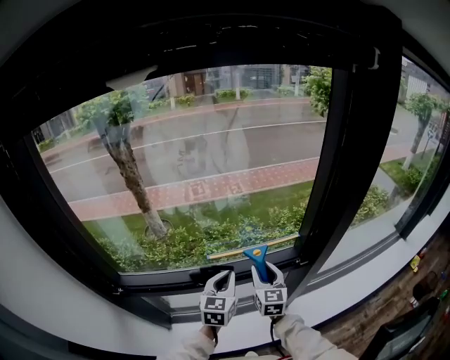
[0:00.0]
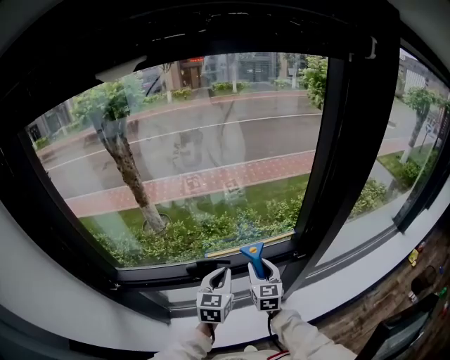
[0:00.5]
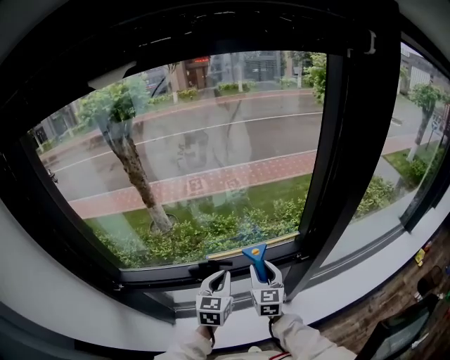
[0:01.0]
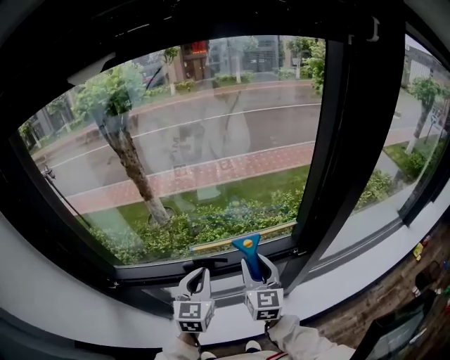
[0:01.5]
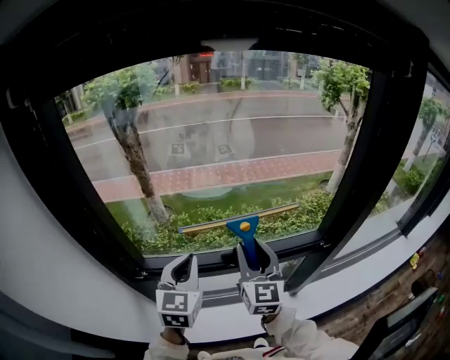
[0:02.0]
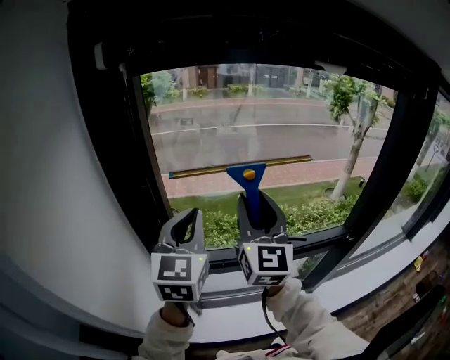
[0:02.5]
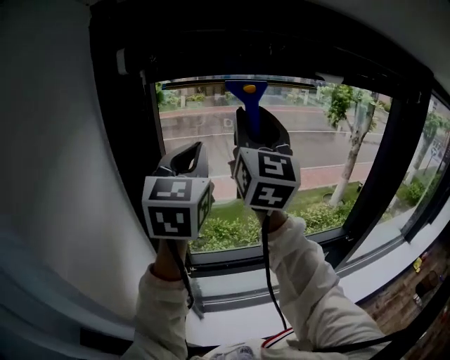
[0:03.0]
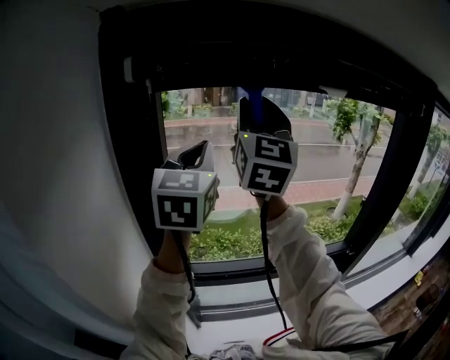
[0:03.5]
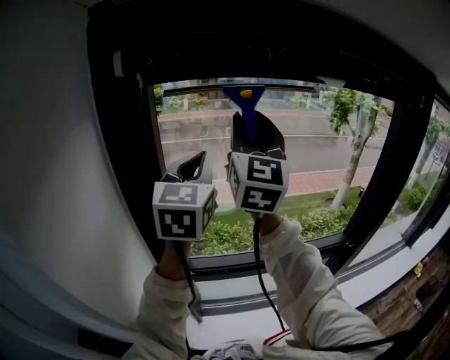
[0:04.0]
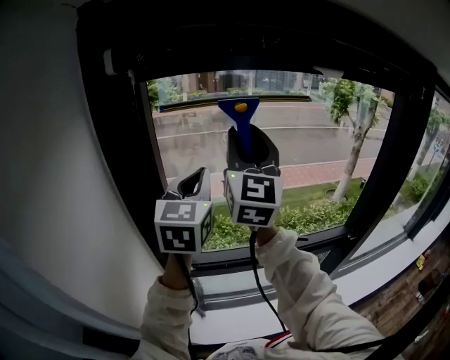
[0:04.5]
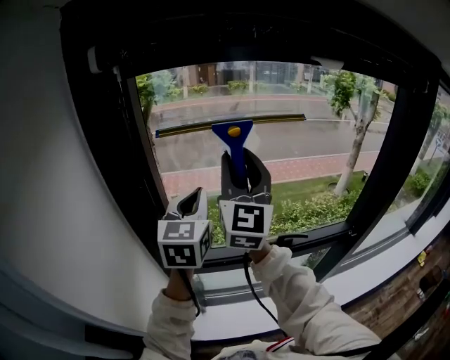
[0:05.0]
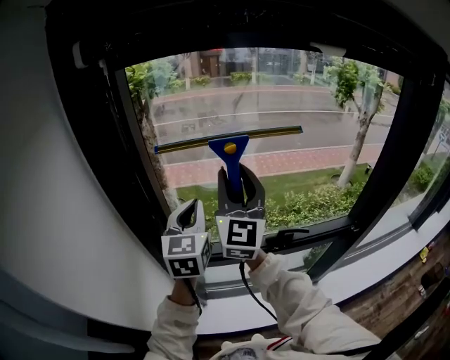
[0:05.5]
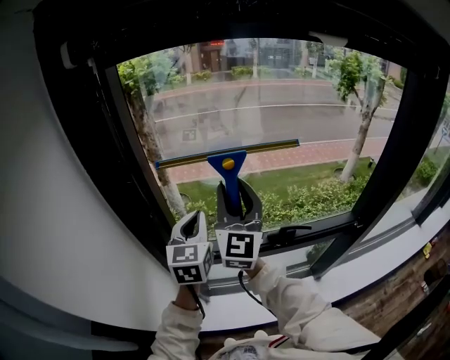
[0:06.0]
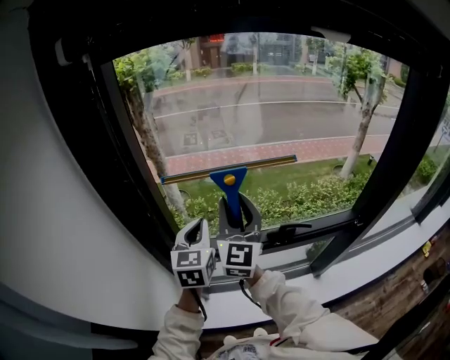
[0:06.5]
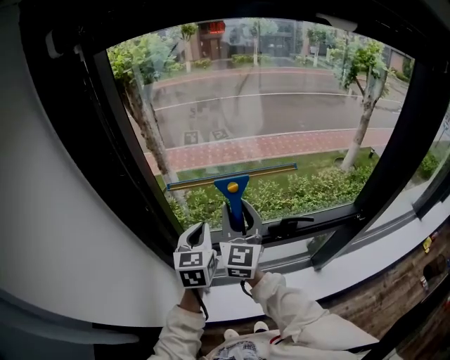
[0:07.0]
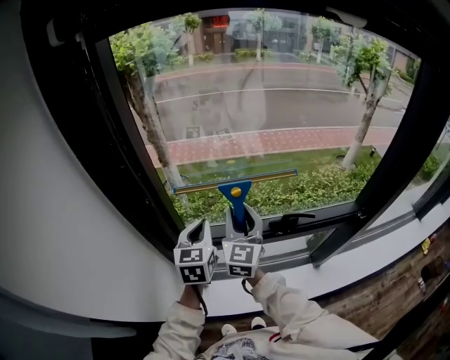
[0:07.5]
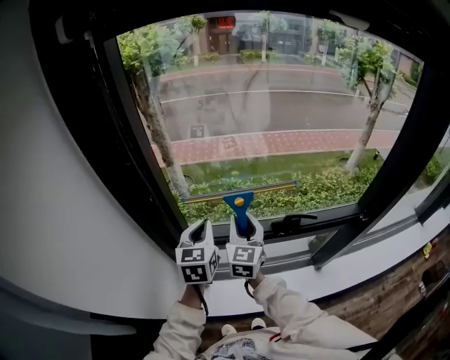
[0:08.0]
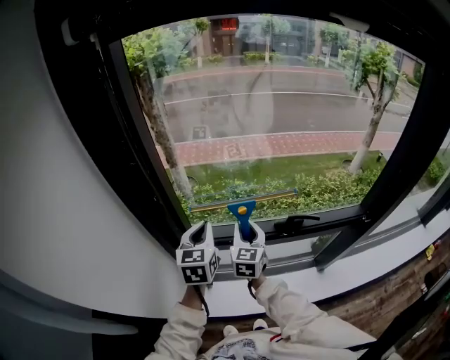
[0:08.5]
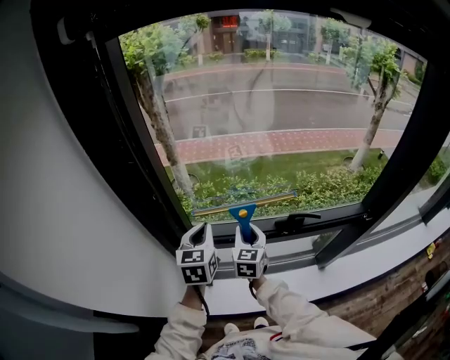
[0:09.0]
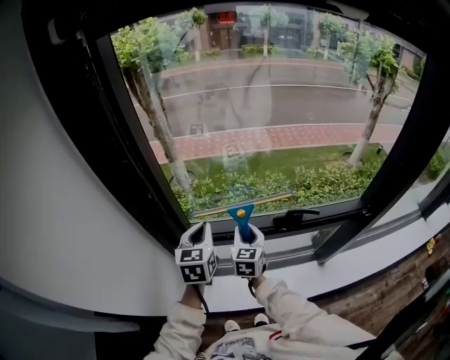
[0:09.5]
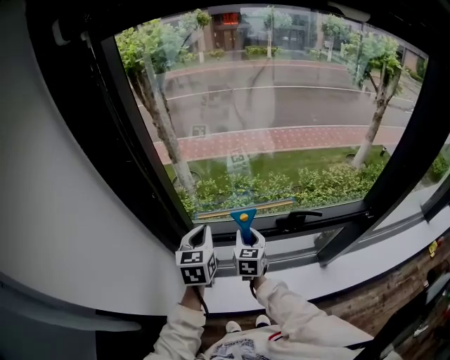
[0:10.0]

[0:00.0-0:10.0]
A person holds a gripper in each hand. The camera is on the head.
0:00.0 to 0:02.0: The right gripper moves to the left, upward and backward, roughly 25 cm. Meanwhile the left gripper travels to the left and upward by approximately 25 cm.
0:02.0 to 0:04.0: Both grippers move upward and to the left, approximately 35 cm. The right gripper swivels approximately 20 degrees.
0:04.0 to 0:06.0: The two grippers go approximately 25 cm downward.
0:06.0 to 0:08.0: The left gripper travels downward by approximately 10 cm. Meanwhile the right gripper heads downward, covering approximately 20 cm, and swivels some 30 degrees.
0:08.0 to 0:10.0: The right gripper shifts some 10 cm downward.

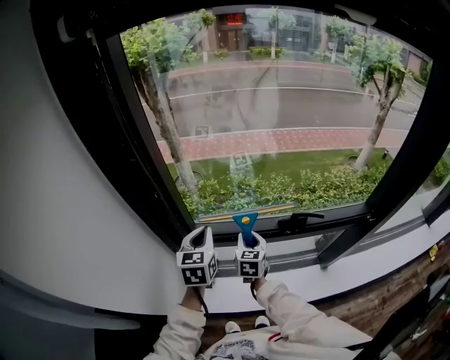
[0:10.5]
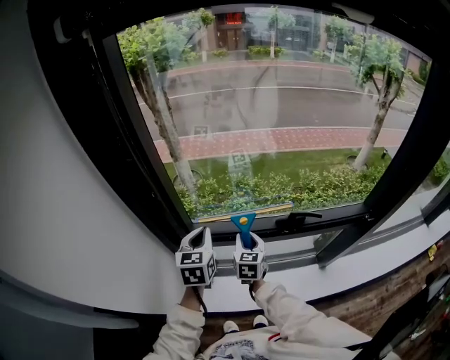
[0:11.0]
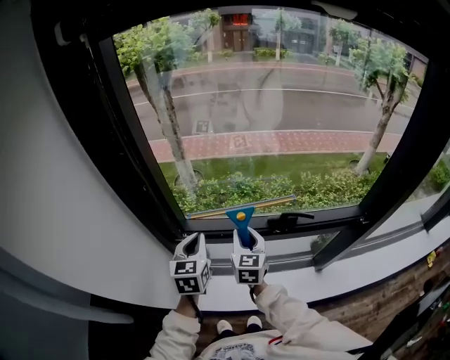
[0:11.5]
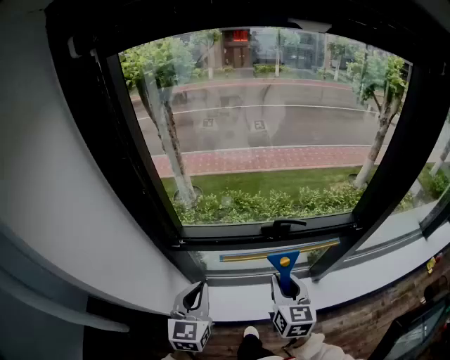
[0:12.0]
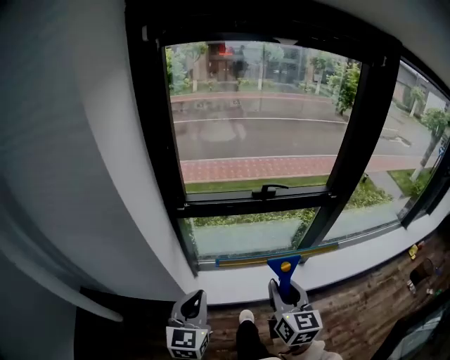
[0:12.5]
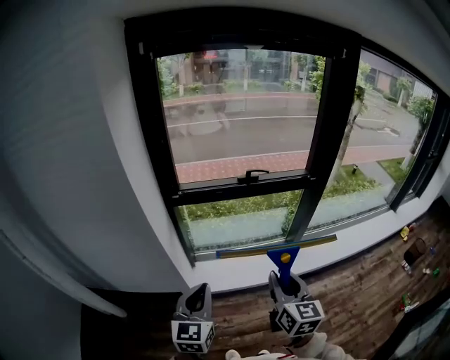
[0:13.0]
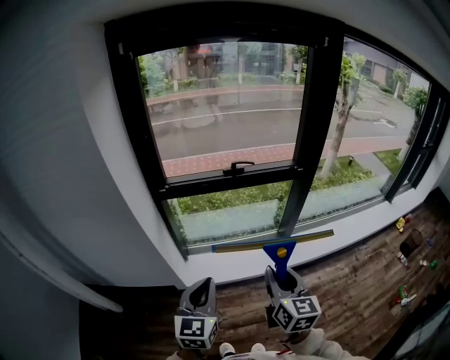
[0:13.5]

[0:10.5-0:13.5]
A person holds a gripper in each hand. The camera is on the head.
0:10.5 to 0:12.0: The left gripper moves backward, approximately 20 cm, while the right gripper moves backward, to the right and upward, roughly 25 cm.
0:12.0 to 0:13.5: The two grippers go about 35 cm backward.

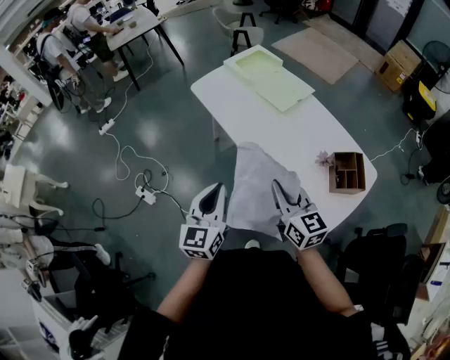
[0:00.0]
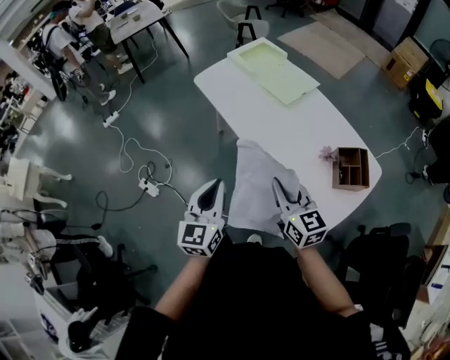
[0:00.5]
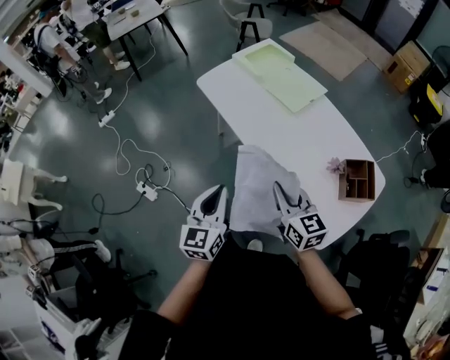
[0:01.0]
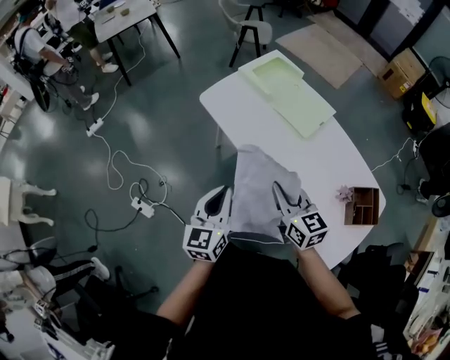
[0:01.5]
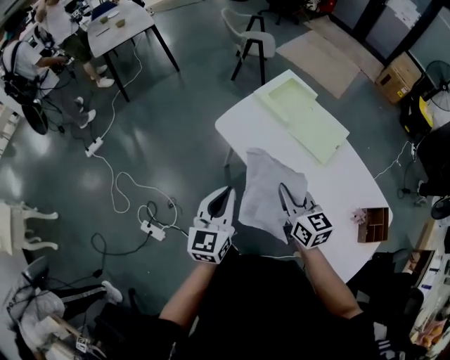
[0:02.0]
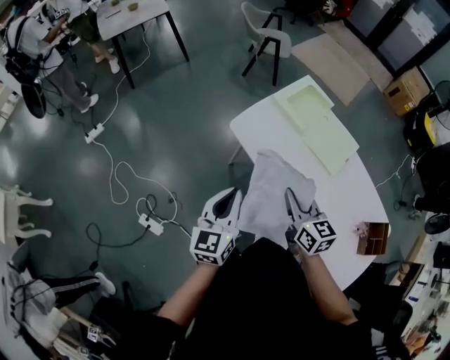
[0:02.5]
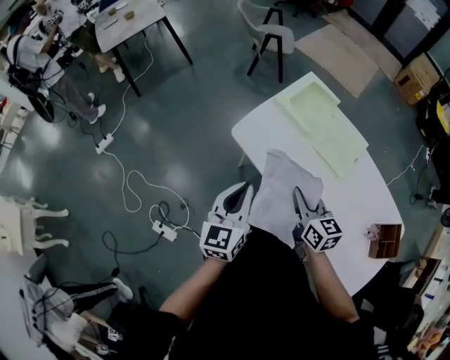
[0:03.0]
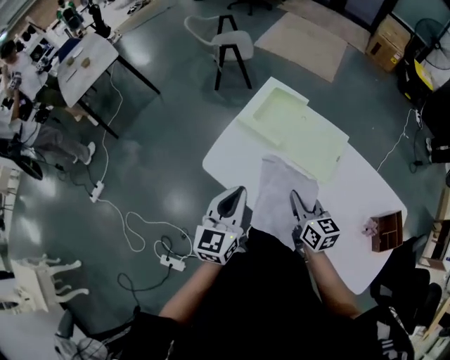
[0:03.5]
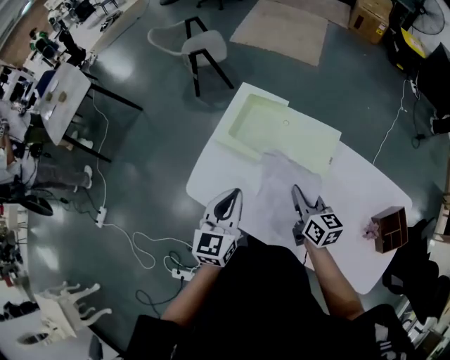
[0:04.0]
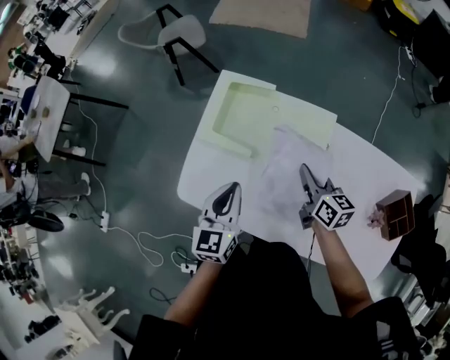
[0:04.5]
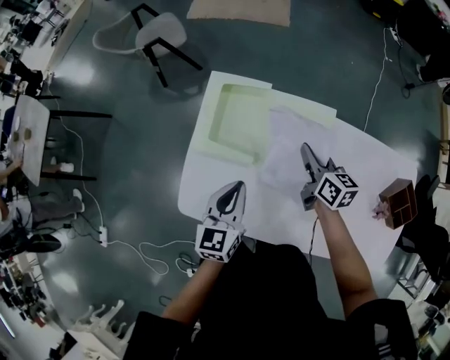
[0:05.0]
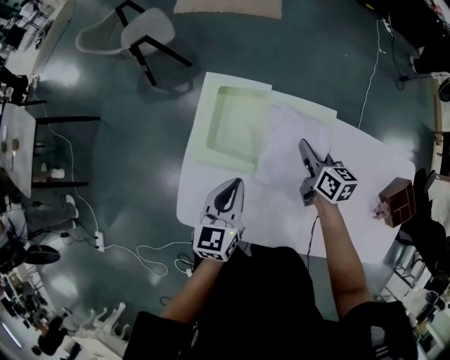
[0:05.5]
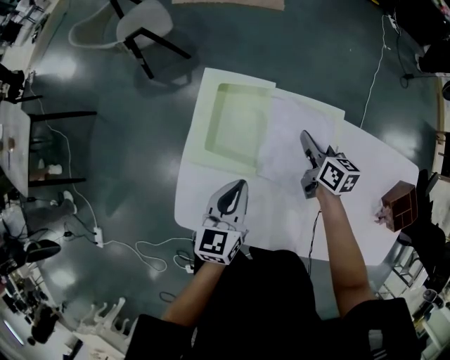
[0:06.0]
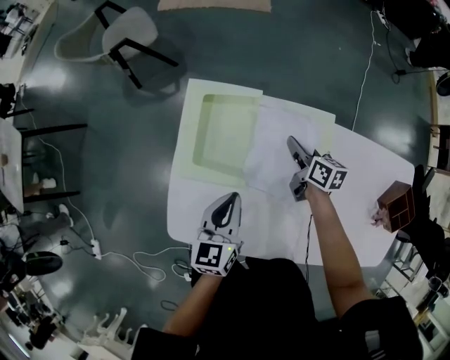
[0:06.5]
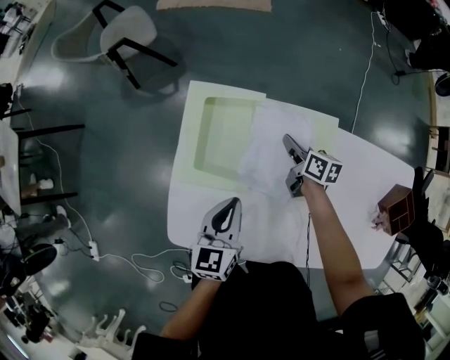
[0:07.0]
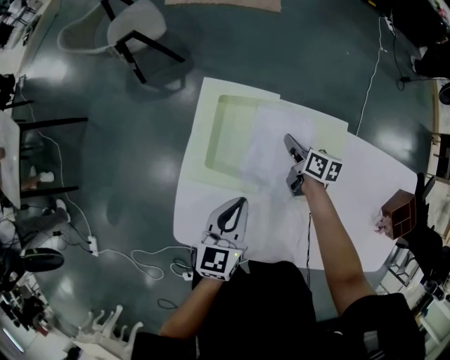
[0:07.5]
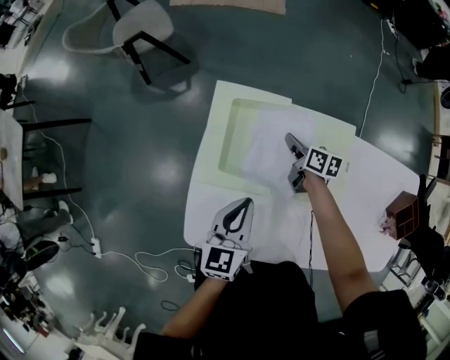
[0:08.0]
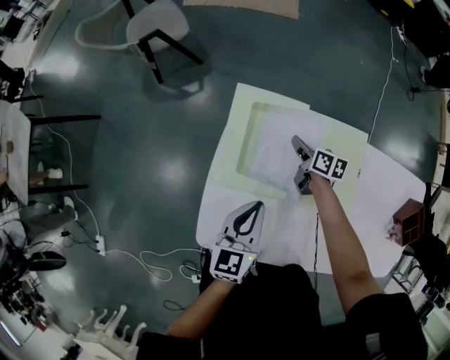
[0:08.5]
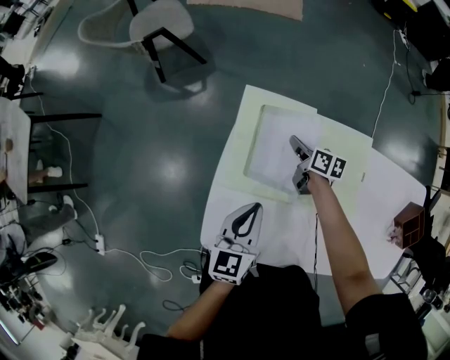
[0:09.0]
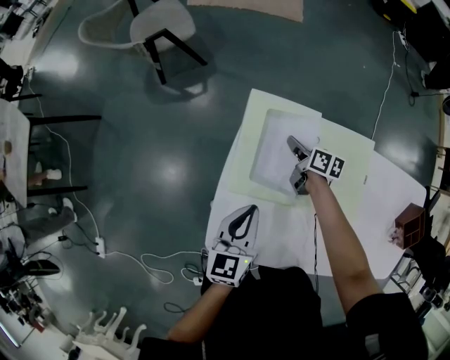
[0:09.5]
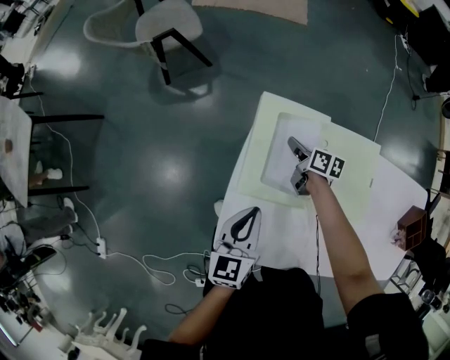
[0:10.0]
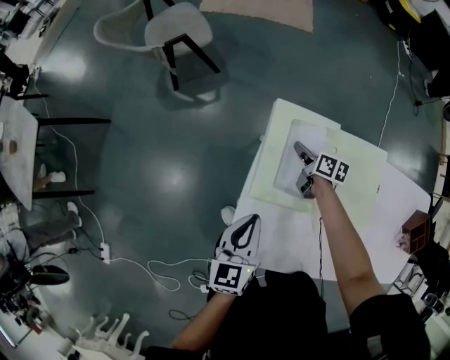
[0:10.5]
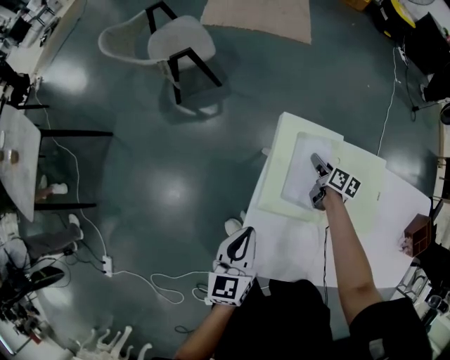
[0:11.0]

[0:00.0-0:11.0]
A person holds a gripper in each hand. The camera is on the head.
0:00.0 to 0:02.0: The two grippers go roughly 40 cm forward and to the left.
0:02.0 to 0:03.5: The left gripper goes approximately 20 cm forward and to the right. The right gripper moves forward, to the right and downward, approximately 20 cm.
0:03.5 to 0:05.5: The left gripper travels forward and downward by about 30 cm, and turns by some 20 degrees. Meanwhile the right gripper heads forward, covering roughly 30 cm, and changes its angle by some 30 degrees.
0:05.5 to 0:07.5: The right gripper heads downward and forward, covering approximately 15 cm, while the left gripper heads downward, covering about 5 cm.
0:07.5 to 0:09.0: The grippers both shift to the left by about 10 cm.
0:09.0 to 0:11.0: The right gripper travels to the left and back again, about 10 cm each way, and opens up. Meanwhile the left gripper moves to the left, approximately 15 cm.

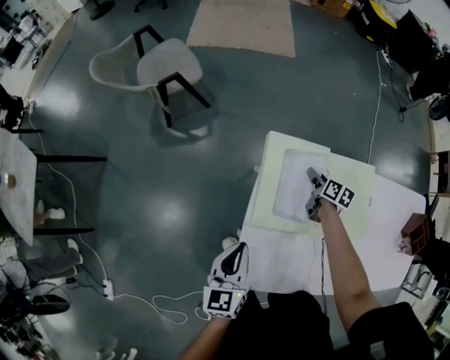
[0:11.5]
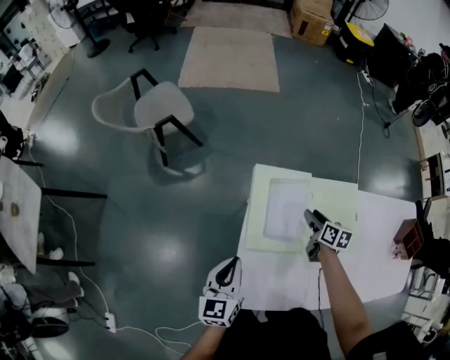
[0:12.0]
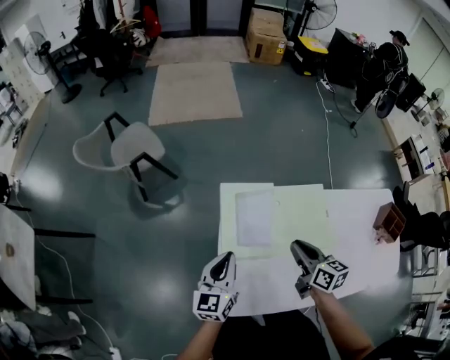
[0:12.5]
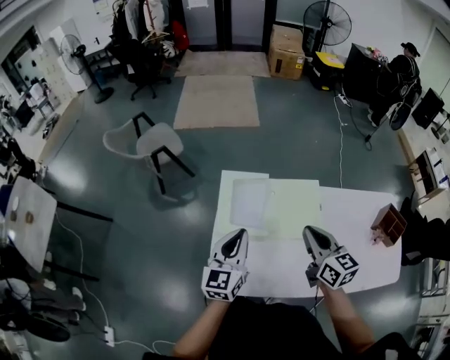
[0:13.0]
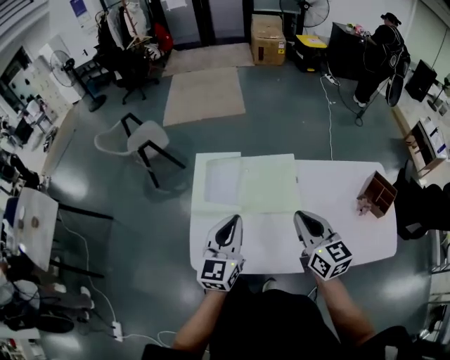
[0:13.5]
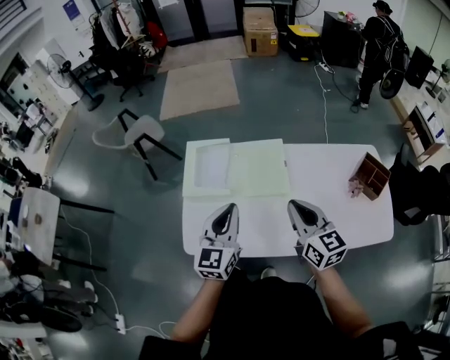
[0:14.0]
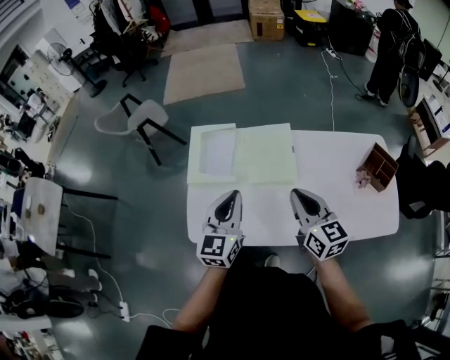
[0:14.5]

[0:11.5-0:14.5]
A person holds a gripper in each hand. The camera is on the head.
0:11.5 to 0:13.0: The left gripper goes approximately 25 cm upward and to the right, and changes its angle by some 20 degrees. The right gripper goes some 50 cm upward and backward, swivels some 40 degrees, and closes its fingers.
0:13.0 to 0:14.5: The grippers both shift to the right and backward by roughly 15 cm.
